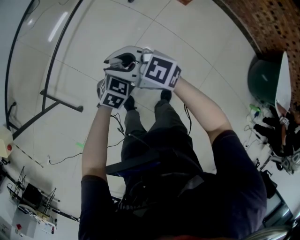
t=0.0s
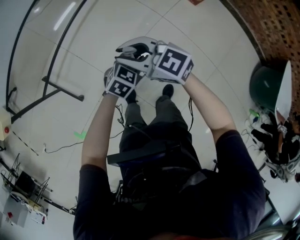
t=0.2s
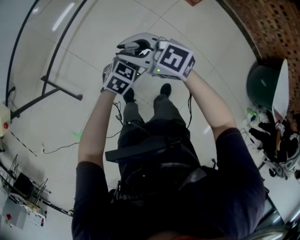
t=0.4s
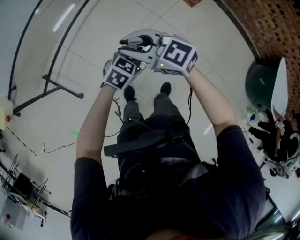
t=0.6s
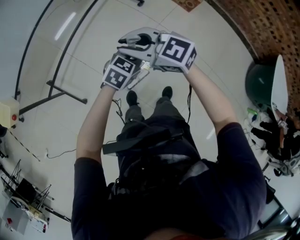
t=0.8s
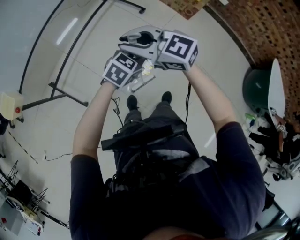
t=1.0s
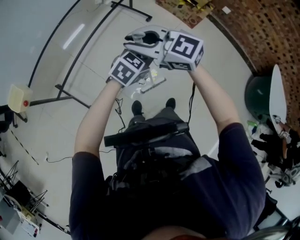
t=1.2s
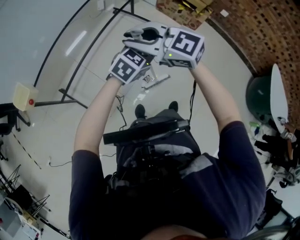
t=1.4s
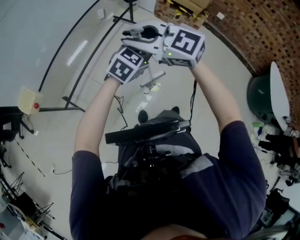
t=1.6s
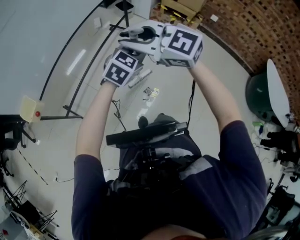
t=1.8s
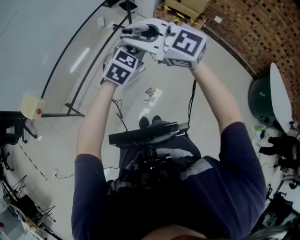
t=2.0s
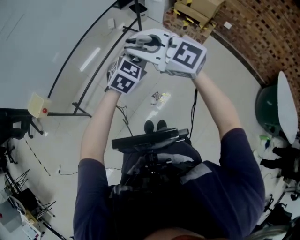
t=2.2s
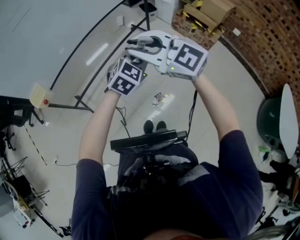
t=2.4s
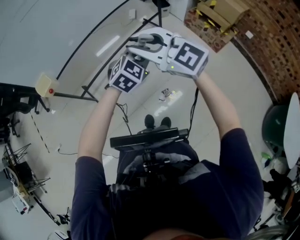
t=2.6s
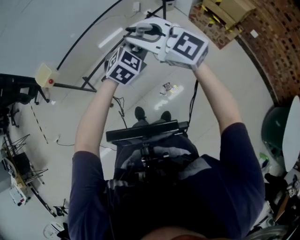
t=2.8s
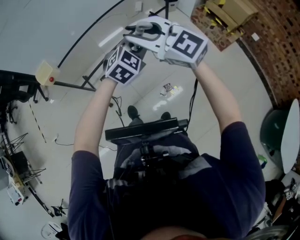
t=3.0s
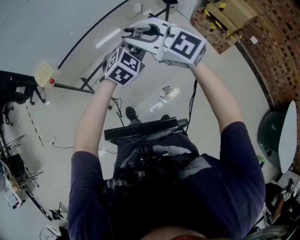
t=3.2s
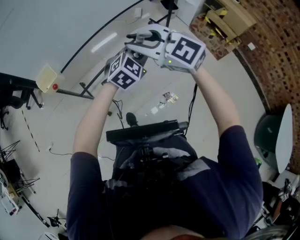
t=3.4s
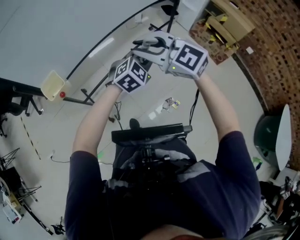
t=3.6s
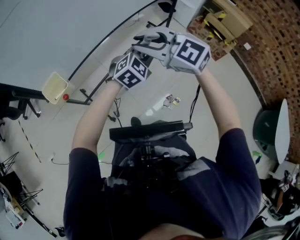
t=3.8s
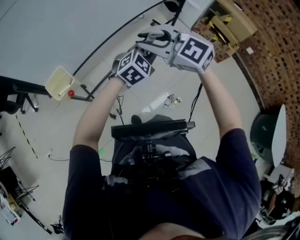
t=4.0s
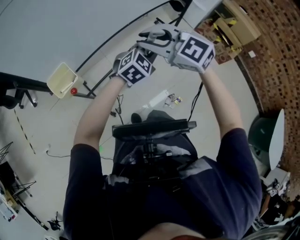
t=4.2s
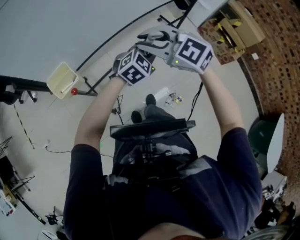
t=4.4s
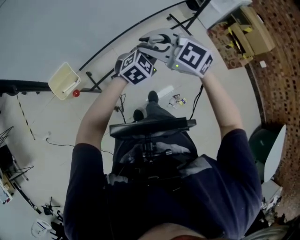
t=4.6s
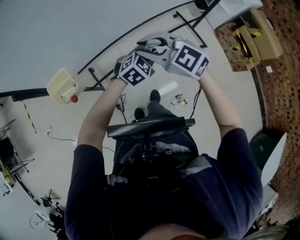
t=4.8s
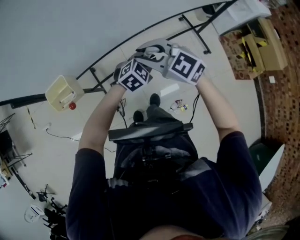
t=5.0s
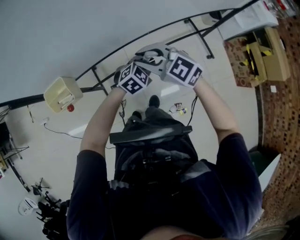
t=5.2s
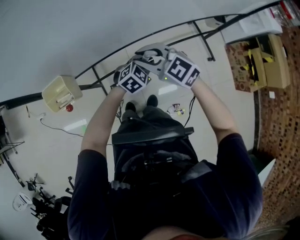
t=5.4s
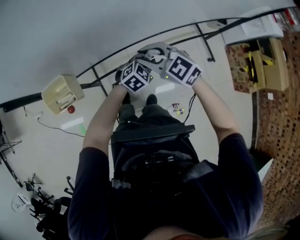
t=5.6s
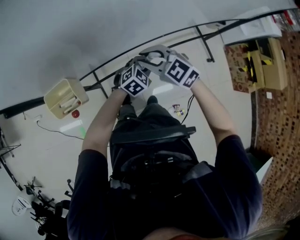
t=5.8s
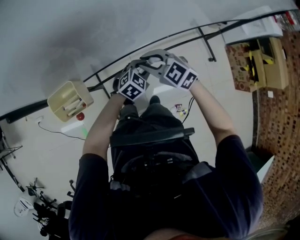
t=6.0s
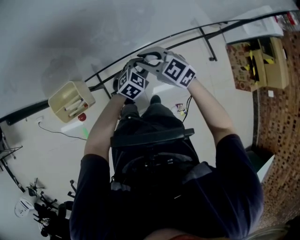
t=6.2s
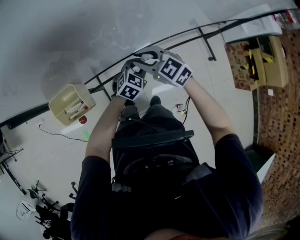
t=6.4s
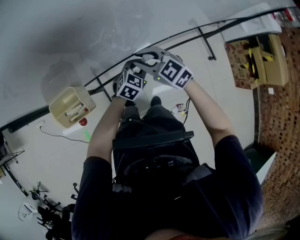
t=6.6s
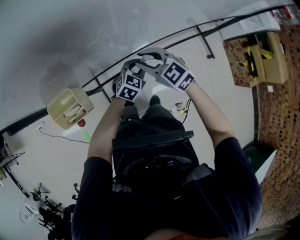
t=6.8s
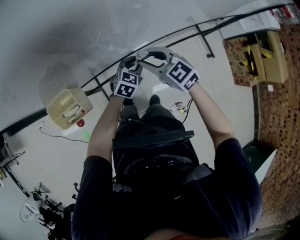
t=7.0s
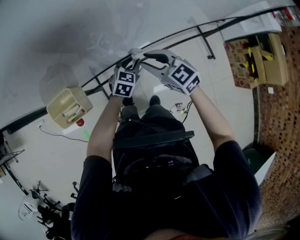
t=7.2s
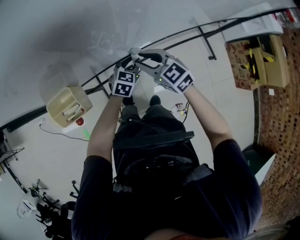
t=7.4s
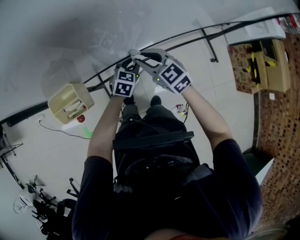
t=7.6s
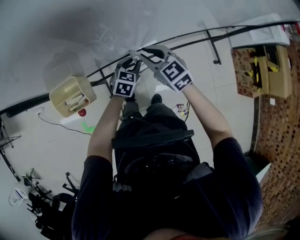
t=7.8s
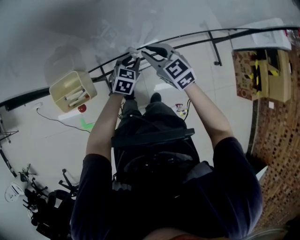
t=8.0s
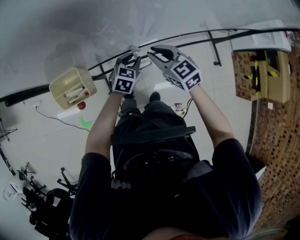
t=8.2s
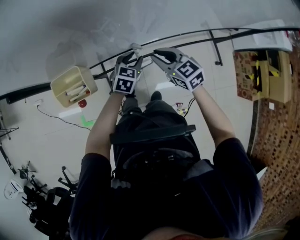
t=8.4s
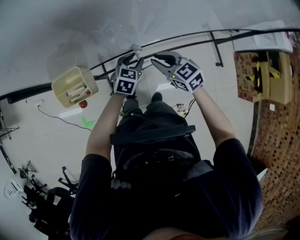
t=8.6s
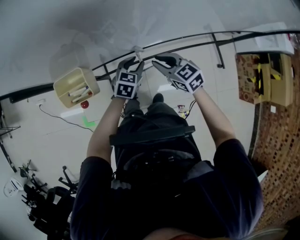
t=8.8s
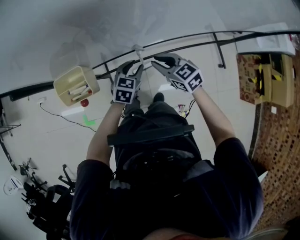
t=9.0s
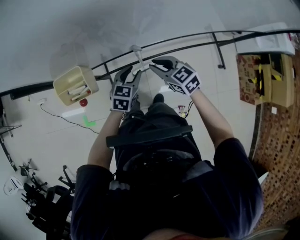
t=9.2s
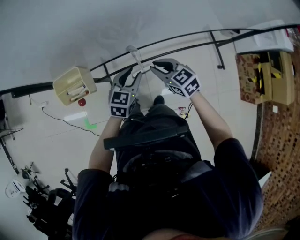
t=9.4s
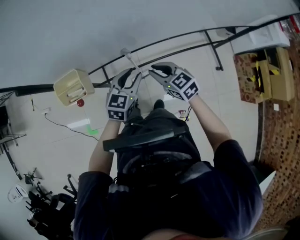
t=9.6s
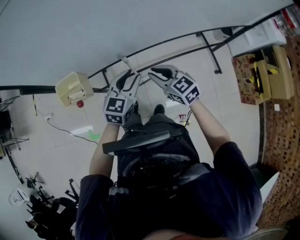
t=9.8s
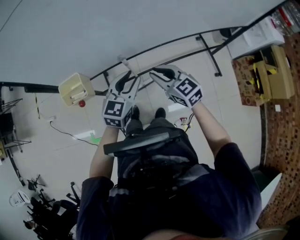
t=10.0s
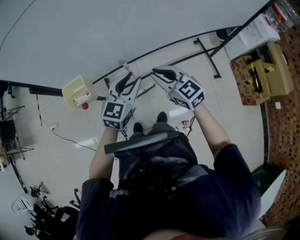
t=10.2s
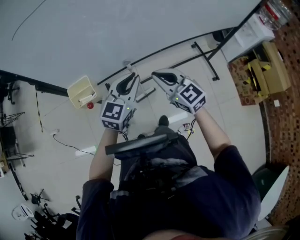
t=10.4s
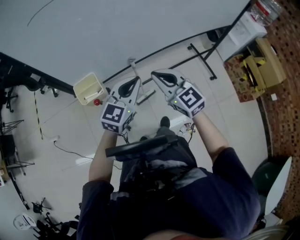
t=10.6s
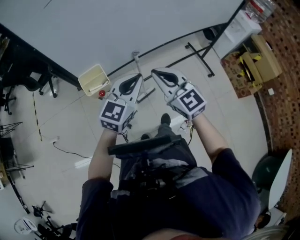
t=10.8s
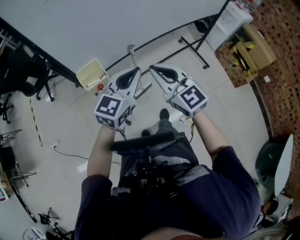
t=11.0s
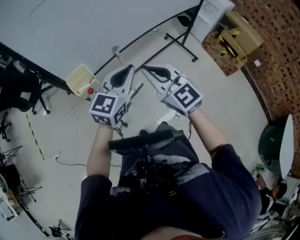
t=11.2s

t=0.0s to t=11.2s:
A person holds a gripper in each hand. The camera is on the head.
t=0.0s to t=1.6s: The two grippers go some 30 cm upward. The right gripper changes its angle by about 20 degrees.
t=1.6s to t=3.2s: The left gripper is displaced to the left and forward by some 10 cm, and rotates roughly 30 degrees; the right gripper changes place by some 5 cm.
t=3.2s to t=4.8s: Both grippers travel together forward, to the left and downward, roughly 30 cm. The right gripper changes its angle by roughly 20 degrees.
t=4.8s to t=6.4s: The right gripper shifts roughly 20 cm downward, forward and to the left, while the left gripper travels downward, to the left and forward by about 20 cm, and swivels some 20 degrees.
t=6.4s to t=8.0s: The left gripper shifts some 5 cm to the left, and rotates about 20 degrees.
t=8.0s to t=9.6s: The right gripper is displaced backward by about 10 cm. Meanwhile the left gripper moves upward and backward, roughly 15 cm.
t=9.6s to t=11.2s: The two grippers go roughly 25 cm upward. The left gripper rotates about 30 degrees, and closes, while the right gripper swivels roughly 40 degrees.

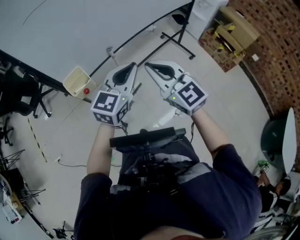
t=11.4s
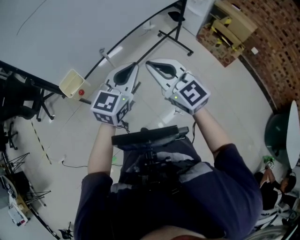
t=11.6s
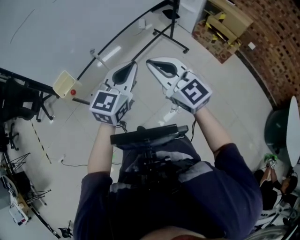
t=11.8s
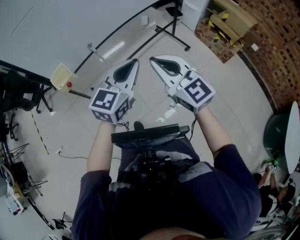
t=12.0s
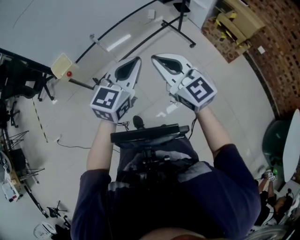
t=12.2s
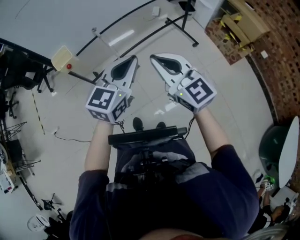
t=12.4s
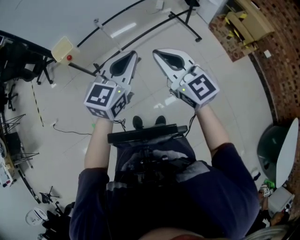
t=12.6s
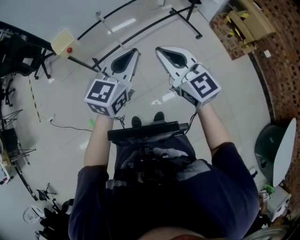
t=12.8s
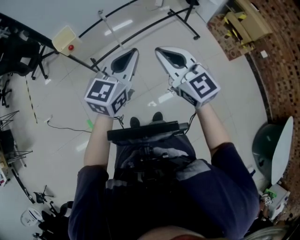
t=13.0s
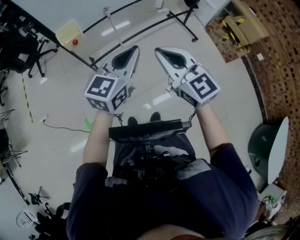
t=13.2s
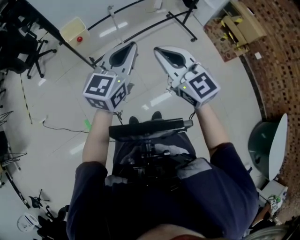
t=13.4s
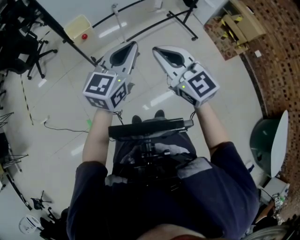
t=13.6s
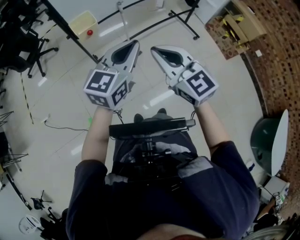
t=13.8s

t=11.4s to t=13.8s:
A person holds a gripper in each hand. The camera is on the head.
t=11.4s to t=12.6s: The two grippers go approximately 15 cm to the right and backward.
t=12.6s to t=13.8s: The grippers both shift to the left by about 20 cm.

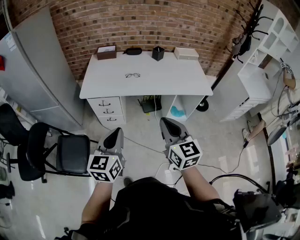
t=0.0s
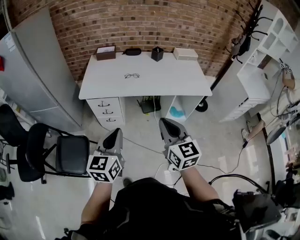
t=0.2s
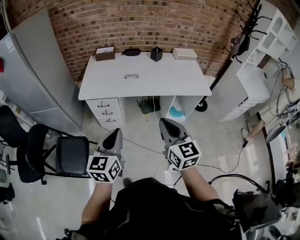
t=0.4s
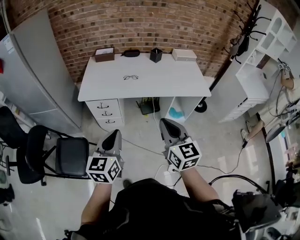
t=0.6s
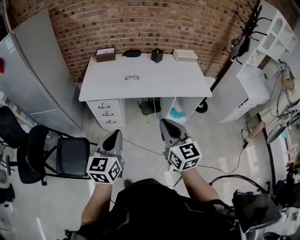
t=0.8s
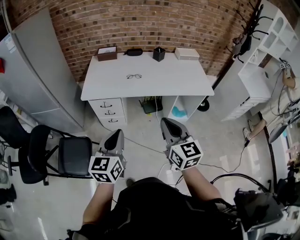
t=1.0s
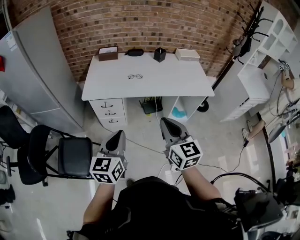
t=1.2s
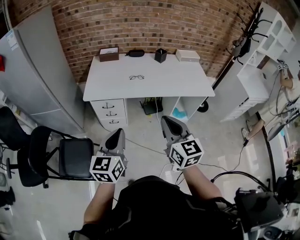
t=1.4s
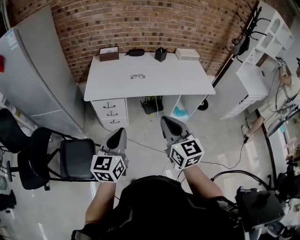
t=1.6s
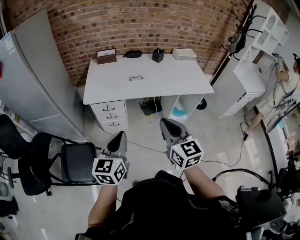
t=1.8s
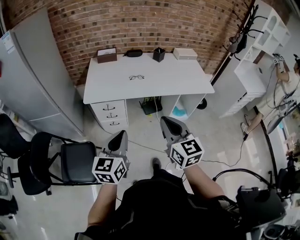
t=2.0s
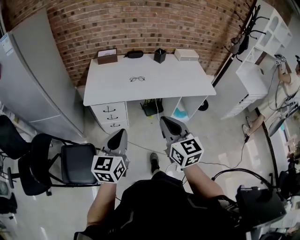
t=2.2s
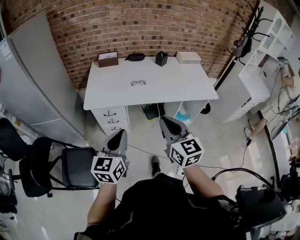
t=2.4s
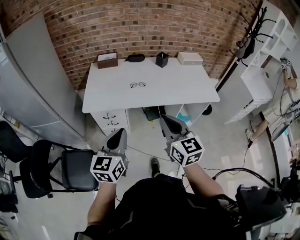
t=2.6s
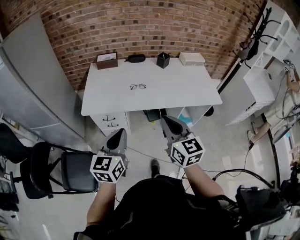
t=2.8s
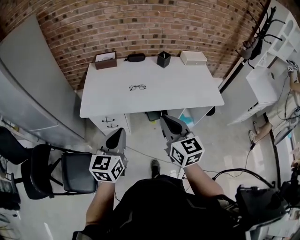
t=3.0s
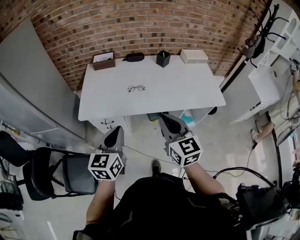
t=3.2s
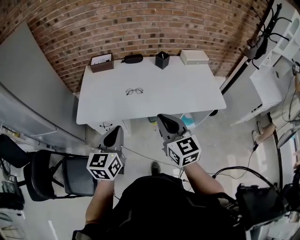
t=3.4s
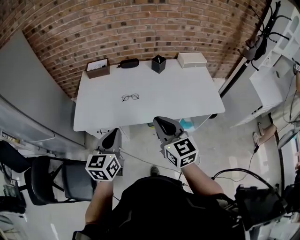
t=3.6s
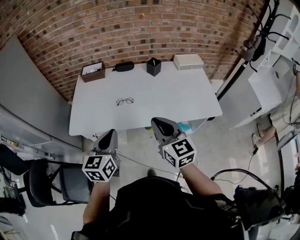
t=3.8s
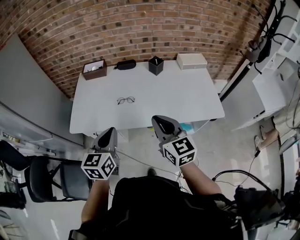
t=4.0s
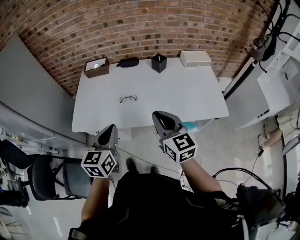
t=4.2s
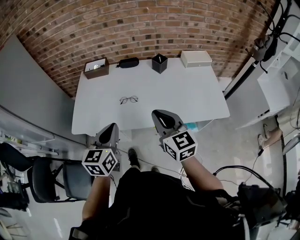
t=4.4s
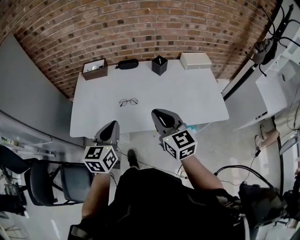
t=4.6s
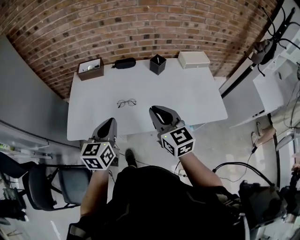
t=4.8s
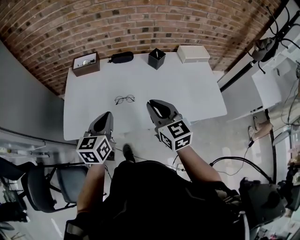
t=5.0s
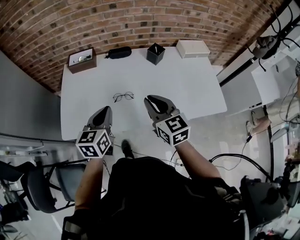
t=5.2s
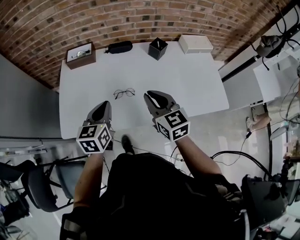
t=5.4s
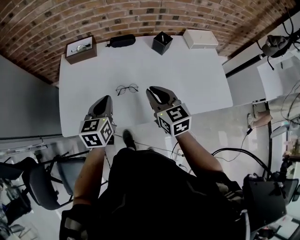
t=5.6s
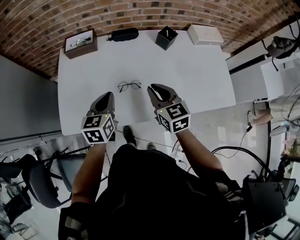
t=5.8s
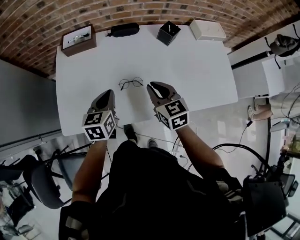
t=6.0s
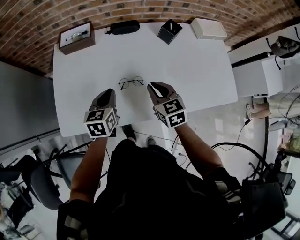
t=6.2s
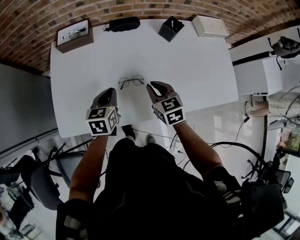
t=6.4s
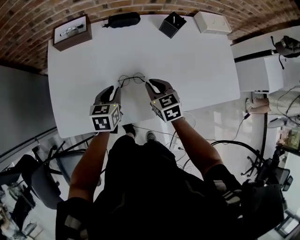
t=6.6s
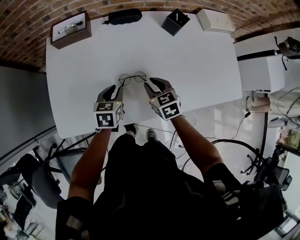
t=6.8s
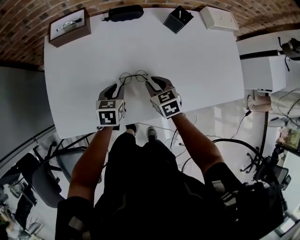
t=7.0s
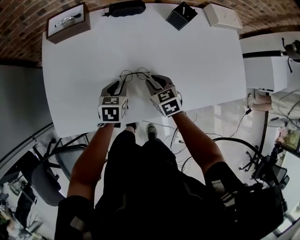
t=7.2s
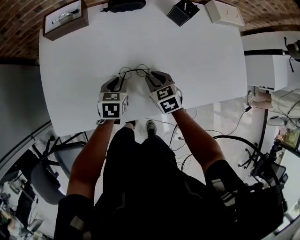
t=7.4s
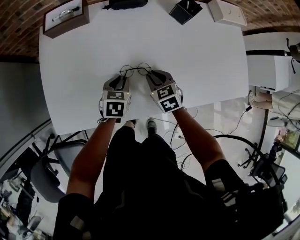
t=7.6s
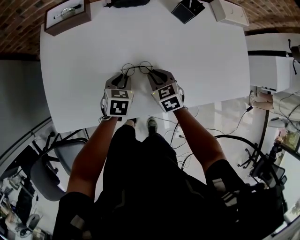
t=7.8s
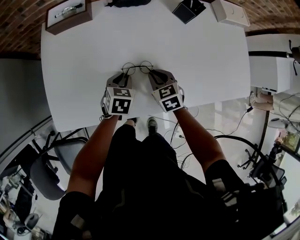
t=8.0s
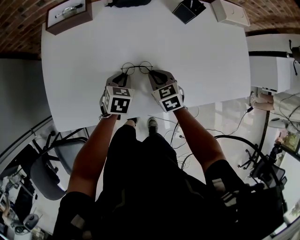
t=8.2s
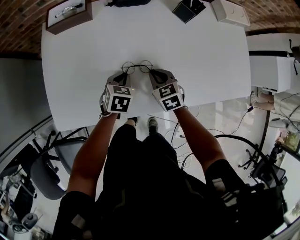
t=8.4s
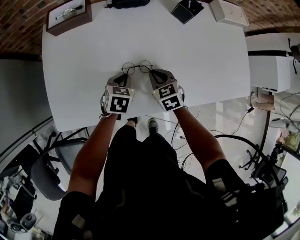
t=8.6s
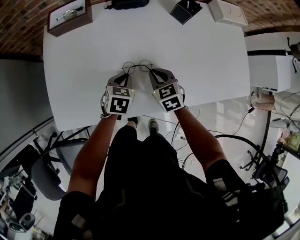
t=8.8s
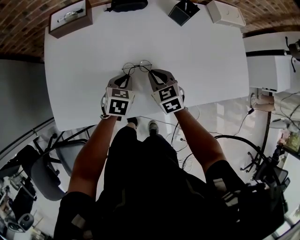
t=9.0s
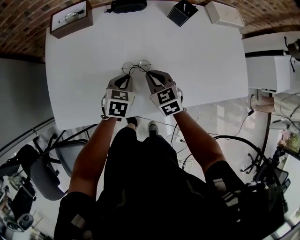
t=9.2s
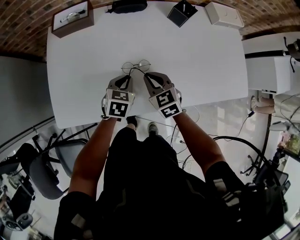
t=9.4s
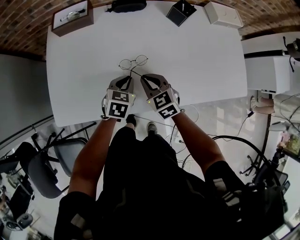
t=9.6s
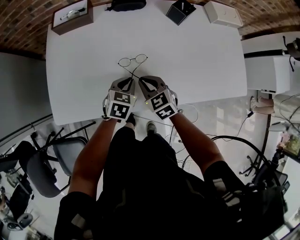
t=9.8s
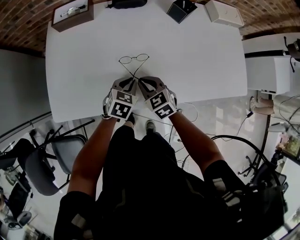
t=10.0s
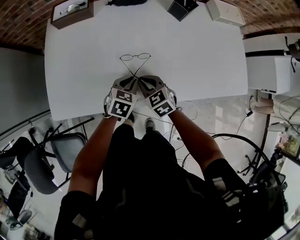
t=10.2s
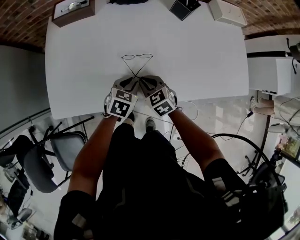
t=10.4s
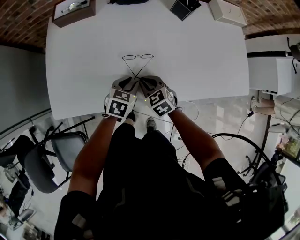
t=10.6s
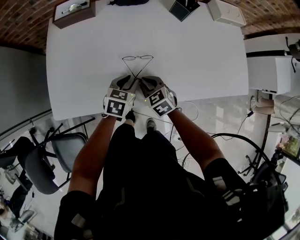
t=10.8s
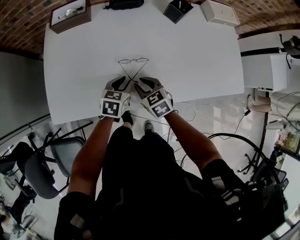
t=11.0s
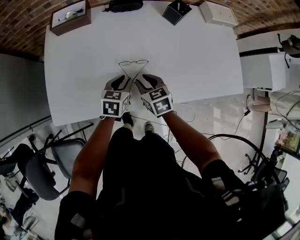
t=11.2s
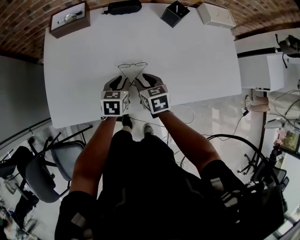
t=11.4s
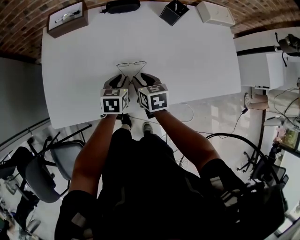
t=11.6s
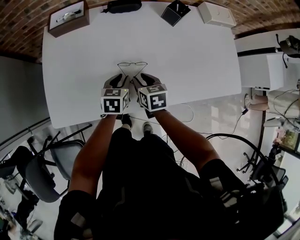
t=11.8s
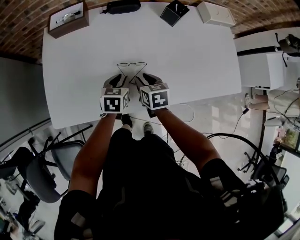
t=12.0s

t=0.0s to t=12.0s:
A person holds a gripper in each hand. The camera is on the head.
t=0.0s to t=1.6s: Both grippers travel together to the left, roughly 10 cm.
t=1.6s to t=3.0s: Both grippers move forward, some 15 cm.
t=3.0s to t=4.4s: The grippers both shift forward and to the right by some 20 cm.
t=4.4s to t=6.0s: The grippers both shift forward and downward by about 25 cm. The right gripper turns by roughly 20 degrees.
t=6.0s to t=7.6s: The two grippers go roughly 20 cm downward. The right gripper swivels roughly 20 degrees. The left gripper swivels some 20 degrees, and opens up.
t=7.6s to t=9.0s: The grippers stay close to where they were, moving slightly.
t=9.0s to t=10.4s: Both grippers travel together backward, some 5 cm.
t=10.4s to t=12.0s: The left gripper travels forward by approximately 5 cm; the right gripper ends up about 5 cm from where it was, and swivels roughly 30 degrees.
